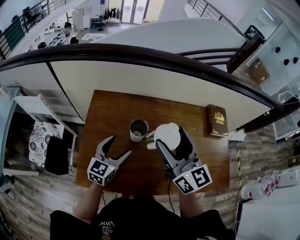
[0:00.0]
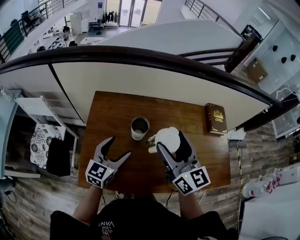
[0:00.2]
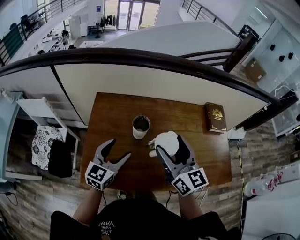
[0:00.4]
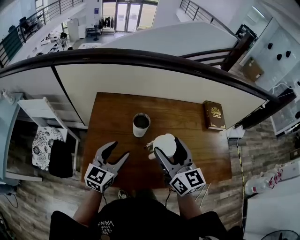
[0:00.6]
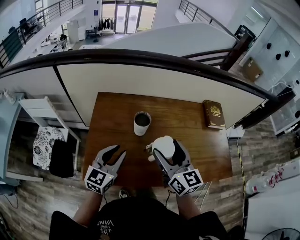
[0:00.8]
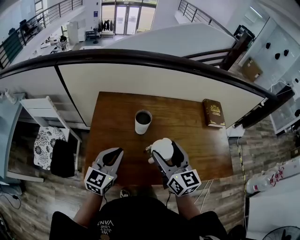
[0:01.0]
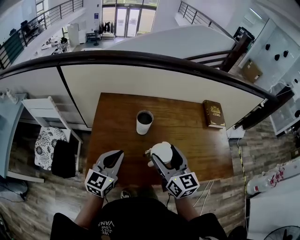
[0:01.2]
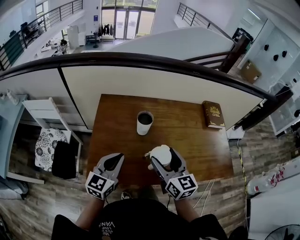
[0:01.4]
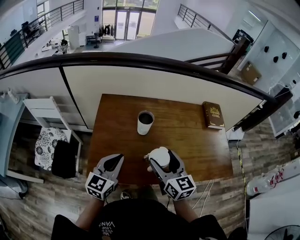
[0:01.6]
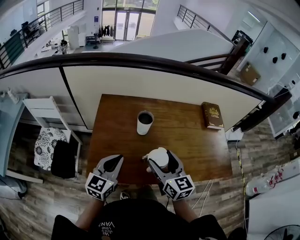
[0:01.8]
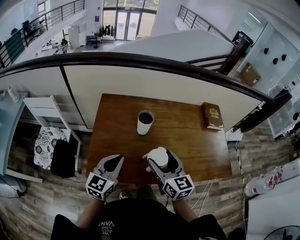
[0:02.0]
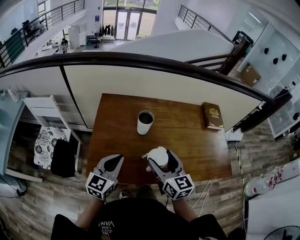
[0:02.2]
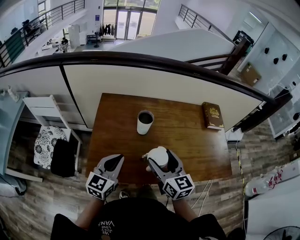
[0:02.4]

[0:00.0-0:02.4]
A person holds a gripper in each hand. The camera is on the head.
0:00.0 to 0:01.2: The right gripper travels backward and downward by roughly 15 cm. Meanwhile the left gripper heads backward and upward, covering approximately 15 cm, and closes up.
0:01.2 to 0:02.4: The grippers stay close to where they were, moving slightly.

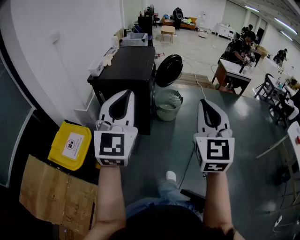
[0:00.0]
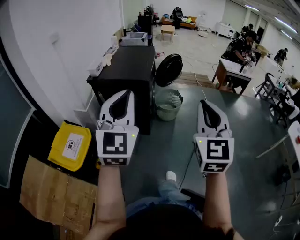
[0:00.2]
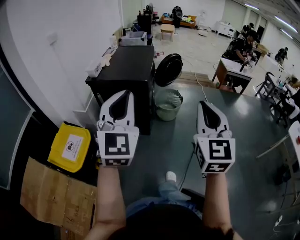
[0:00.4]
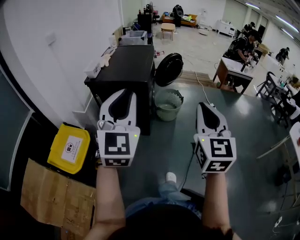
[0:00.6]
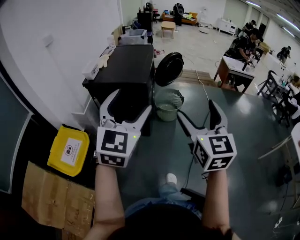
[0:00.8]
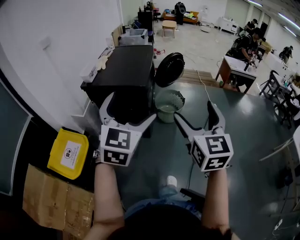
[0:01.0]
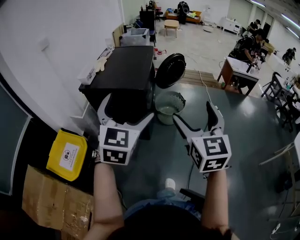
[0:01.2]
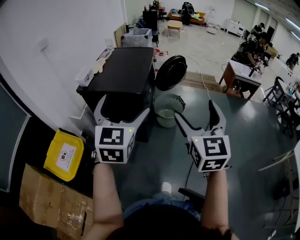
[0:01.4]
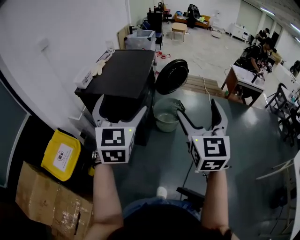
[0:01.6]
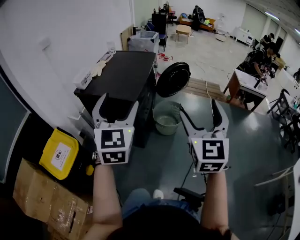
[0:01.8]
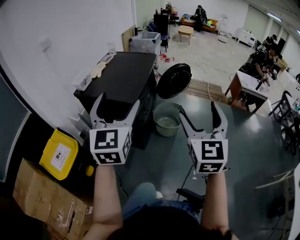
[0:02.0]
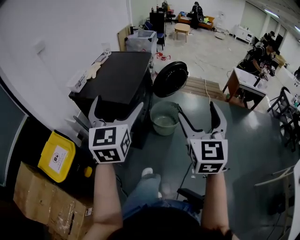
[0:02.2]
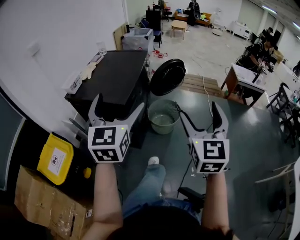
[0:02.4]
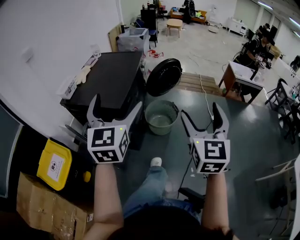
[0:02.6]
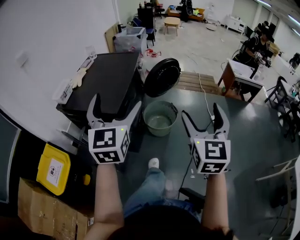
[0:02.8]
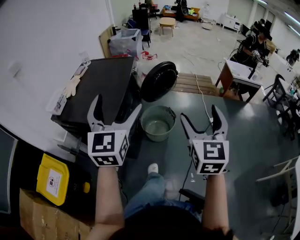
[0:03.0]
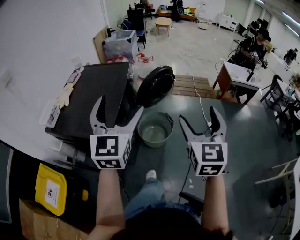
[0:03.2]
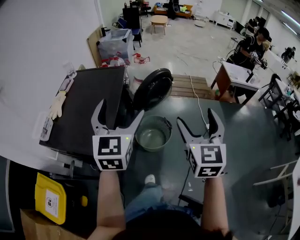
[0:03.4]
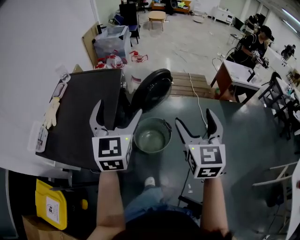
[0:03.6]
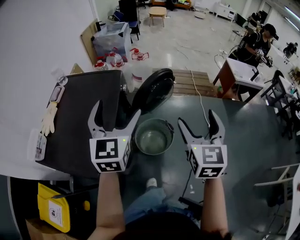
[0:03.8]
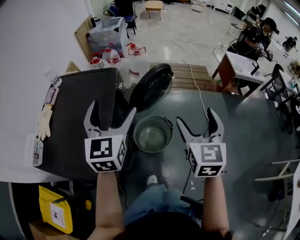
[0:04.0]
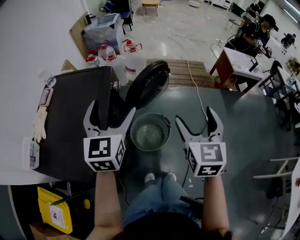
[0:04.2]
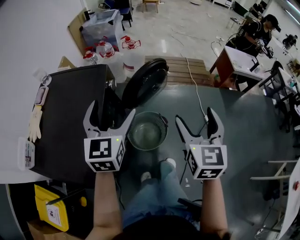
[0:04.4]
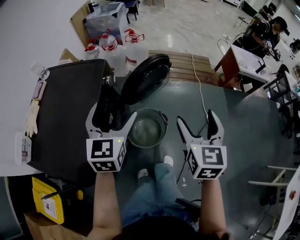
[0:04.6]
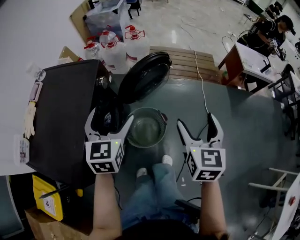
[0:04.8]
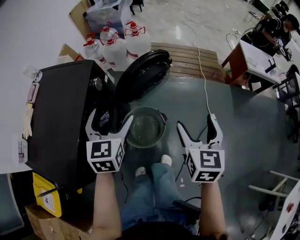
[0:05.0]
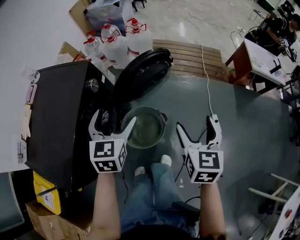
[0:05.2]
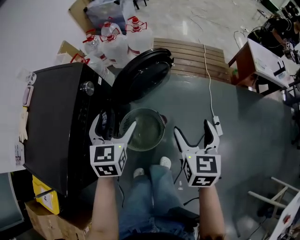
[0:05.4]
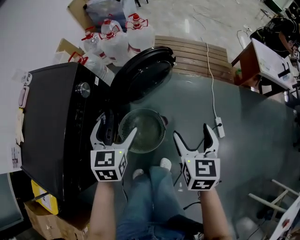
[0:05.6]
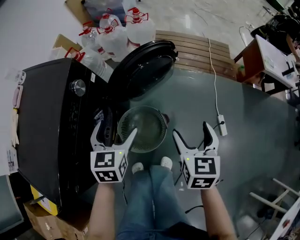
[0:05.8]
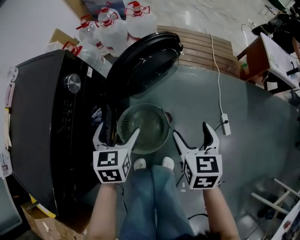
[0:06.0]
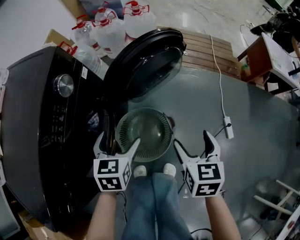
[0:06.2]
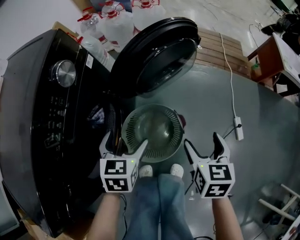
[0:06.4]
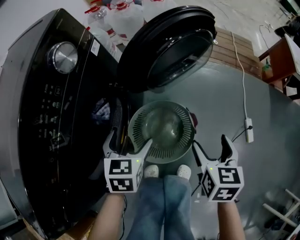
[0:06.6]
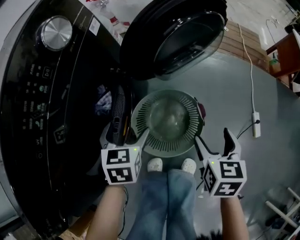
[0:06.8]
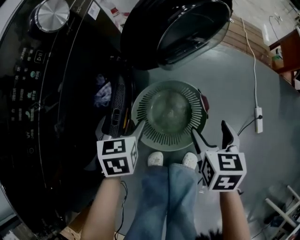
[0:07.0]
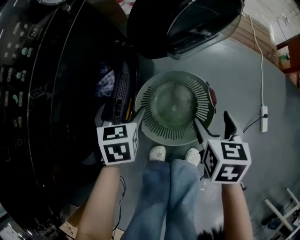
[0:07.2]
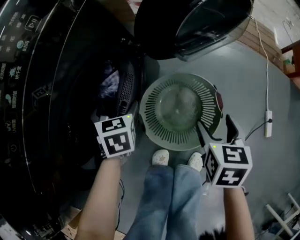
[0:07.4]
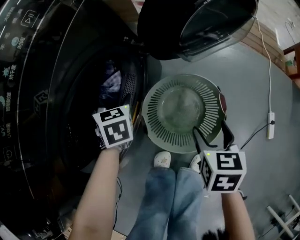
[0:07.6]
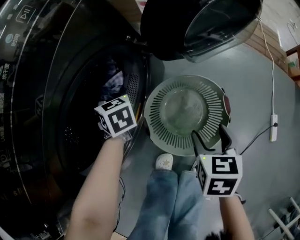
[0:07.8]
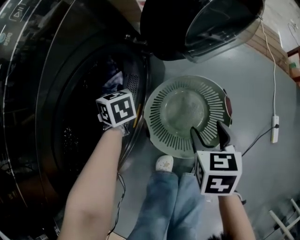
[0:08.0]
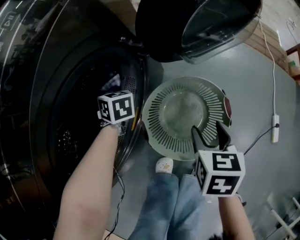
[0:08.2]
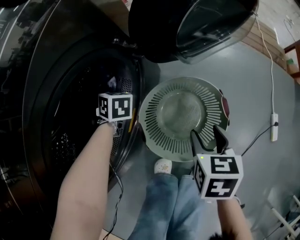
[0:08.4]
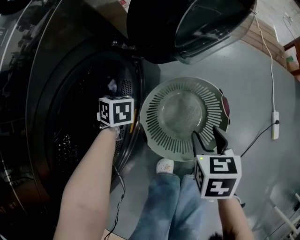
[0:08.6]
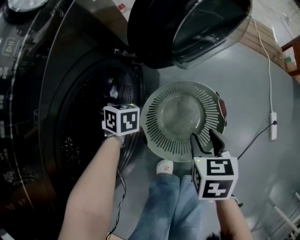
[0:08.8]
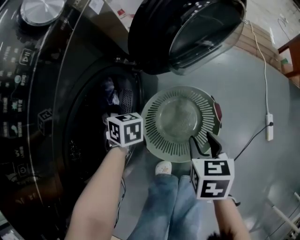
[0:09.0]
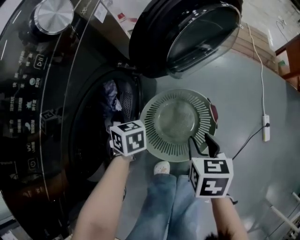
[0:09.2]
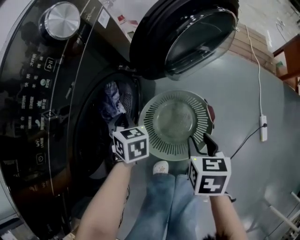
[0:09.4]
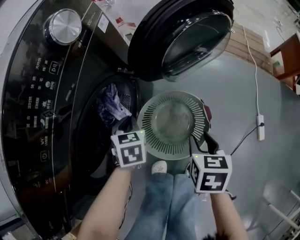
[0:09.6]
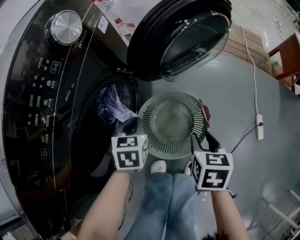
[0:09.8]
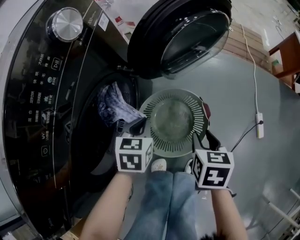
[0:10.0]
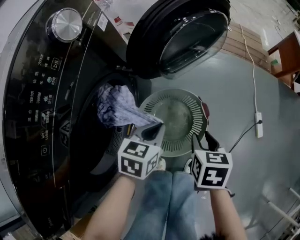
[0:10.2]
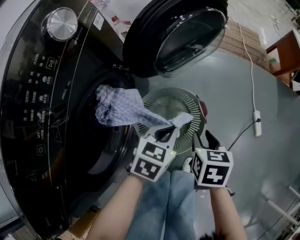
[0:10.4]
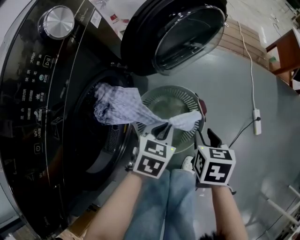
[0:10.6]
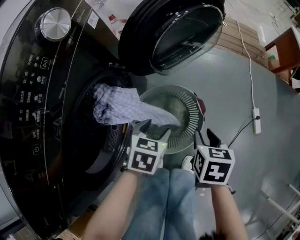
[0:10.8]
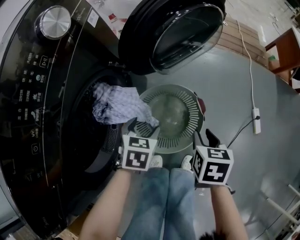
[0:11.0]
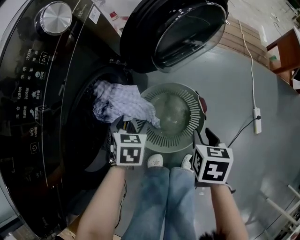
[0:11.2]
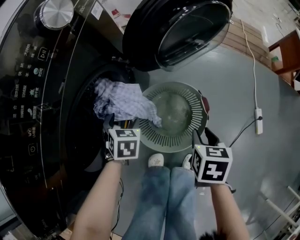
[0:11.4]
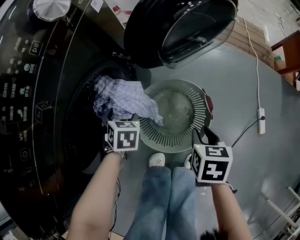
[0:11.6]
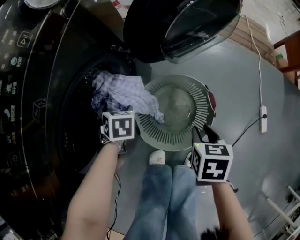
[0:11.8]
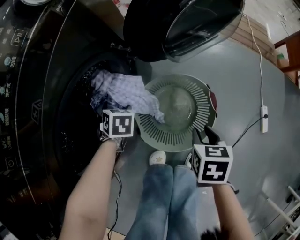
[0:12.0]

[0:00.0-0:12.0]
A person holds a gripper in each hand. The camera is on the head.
0:00.0 to 0:01.6: The grippers both shift forward by about 20 cm. The left gripper opens up. The right gripper opens its fingers.
0:01.6 to 0:03.0: Both grippers move forward and to the right, approximately 20 cm.
0:03.0 to 0:04.4: Both grippers travel together forward, some 30 cm.
0:04.4 to 0:06.0: The left gripper heads downward, covering about 30 cm, and swivels about 30 degrees. Meanwhile the right gripper moves downward and forward, roughly 30 cm, and swivels about 30 degrees.
0:06.0 to 0:07.6: The grippers both shift downward by about 25 cm. The left gripper turns by approximately 30 degrees.
0:07.6 to 0:09.0: The left gripper closes its fingers, while the right gripper closes up.
0:09.0 to 0:10.4: The right gripper moves some 5 cm. Meanwhile the left gripper changes place by some 30 cm, and rotates about 60 degrees.
0:10.4 to 0:12.0: The left gripper moves approximately 30 cm, changes its angle by some 50 degrees, and opens, while the right gripper shifts about 5 cm downward.

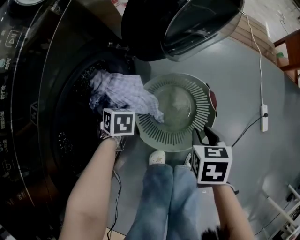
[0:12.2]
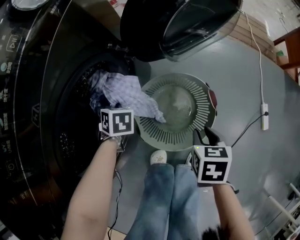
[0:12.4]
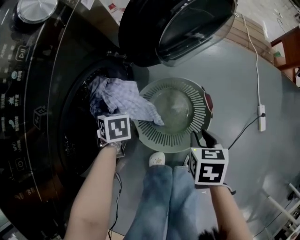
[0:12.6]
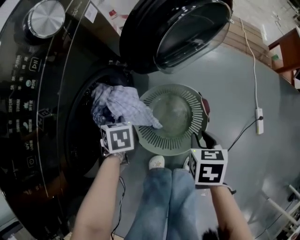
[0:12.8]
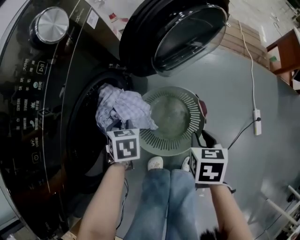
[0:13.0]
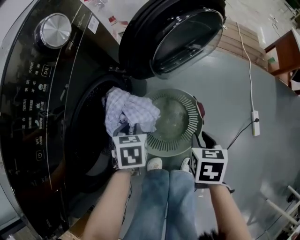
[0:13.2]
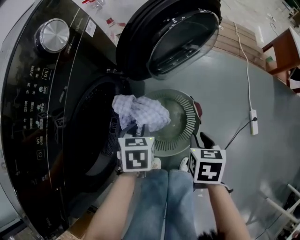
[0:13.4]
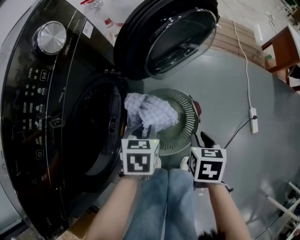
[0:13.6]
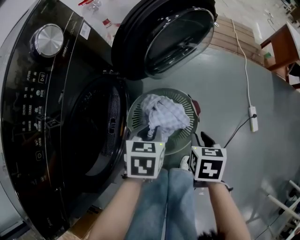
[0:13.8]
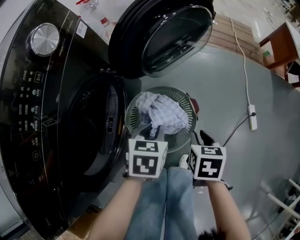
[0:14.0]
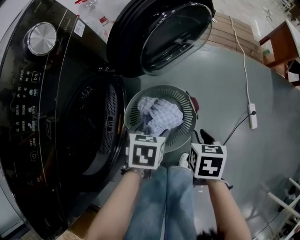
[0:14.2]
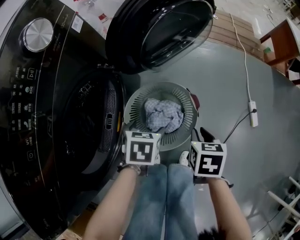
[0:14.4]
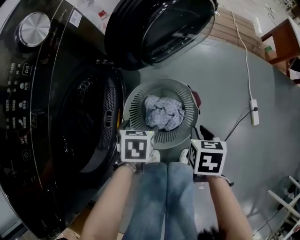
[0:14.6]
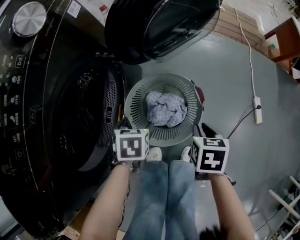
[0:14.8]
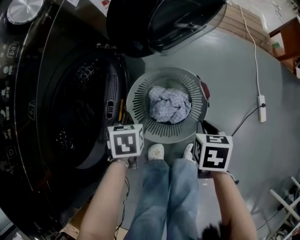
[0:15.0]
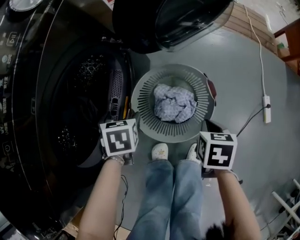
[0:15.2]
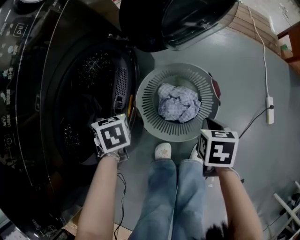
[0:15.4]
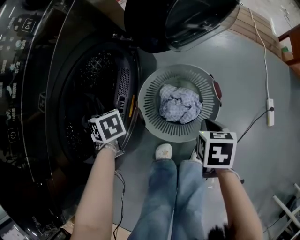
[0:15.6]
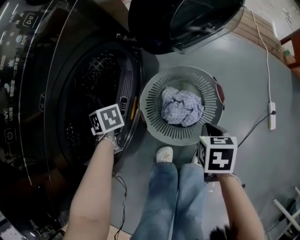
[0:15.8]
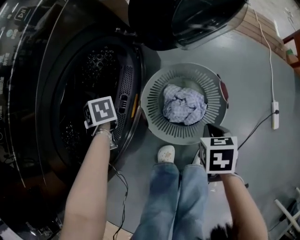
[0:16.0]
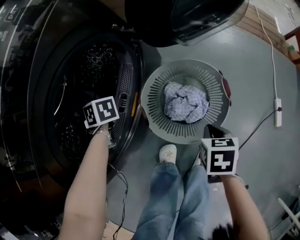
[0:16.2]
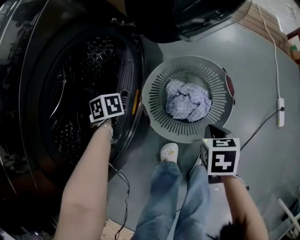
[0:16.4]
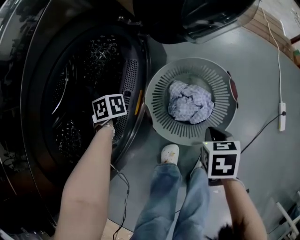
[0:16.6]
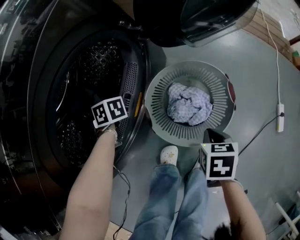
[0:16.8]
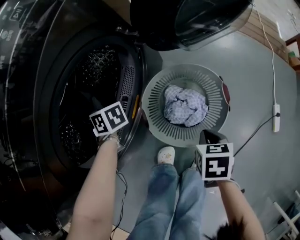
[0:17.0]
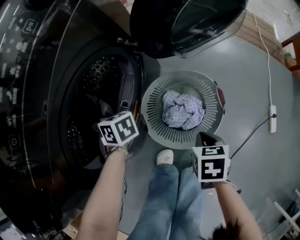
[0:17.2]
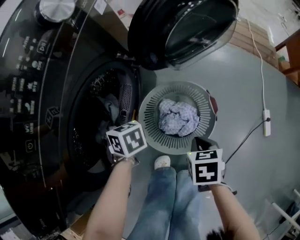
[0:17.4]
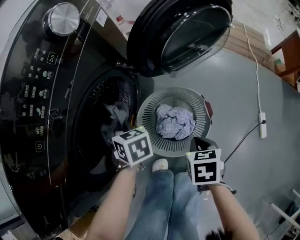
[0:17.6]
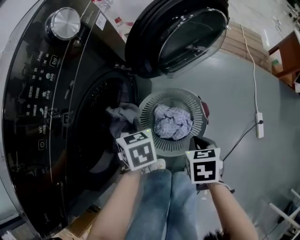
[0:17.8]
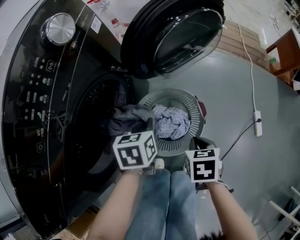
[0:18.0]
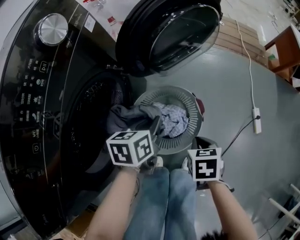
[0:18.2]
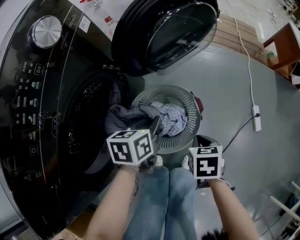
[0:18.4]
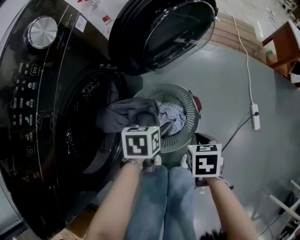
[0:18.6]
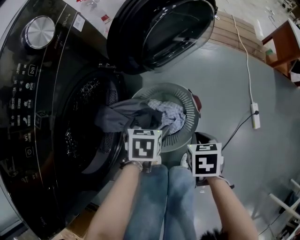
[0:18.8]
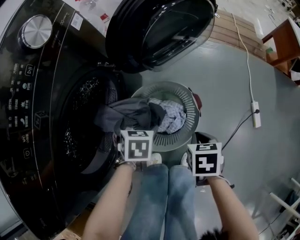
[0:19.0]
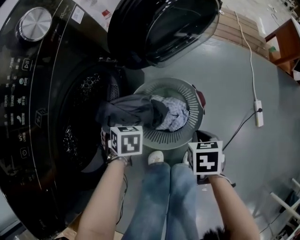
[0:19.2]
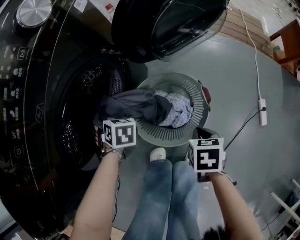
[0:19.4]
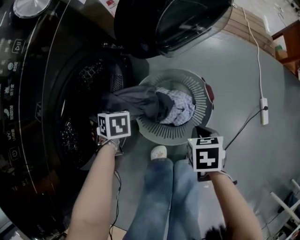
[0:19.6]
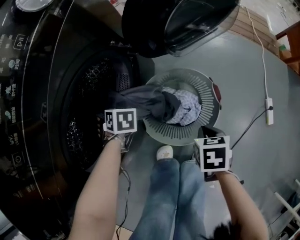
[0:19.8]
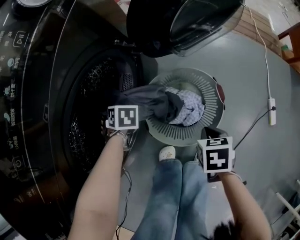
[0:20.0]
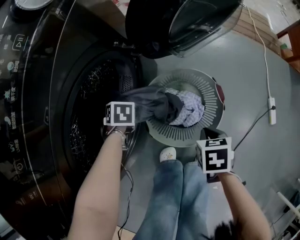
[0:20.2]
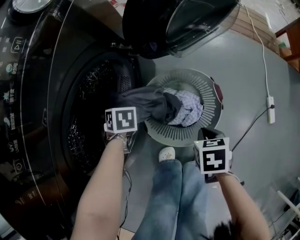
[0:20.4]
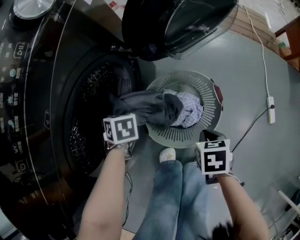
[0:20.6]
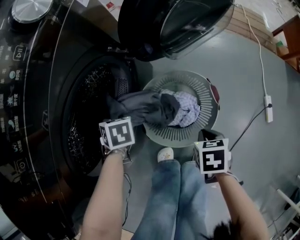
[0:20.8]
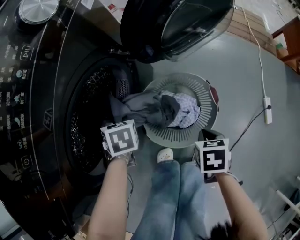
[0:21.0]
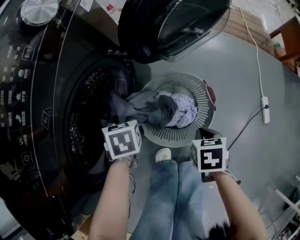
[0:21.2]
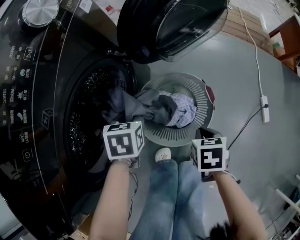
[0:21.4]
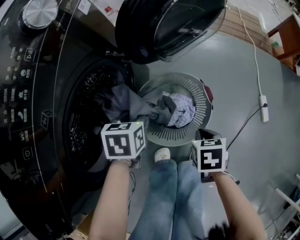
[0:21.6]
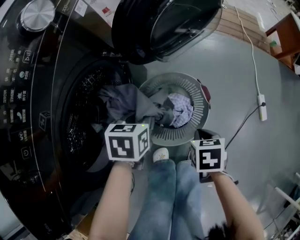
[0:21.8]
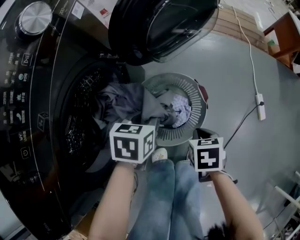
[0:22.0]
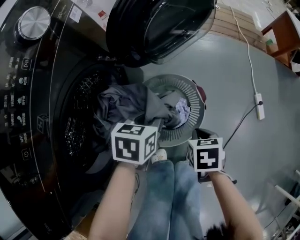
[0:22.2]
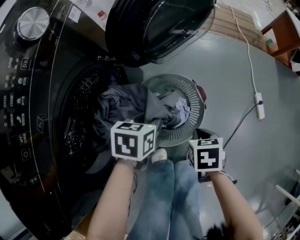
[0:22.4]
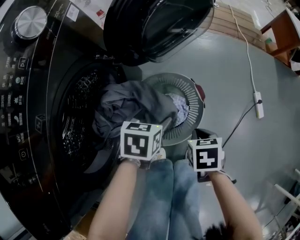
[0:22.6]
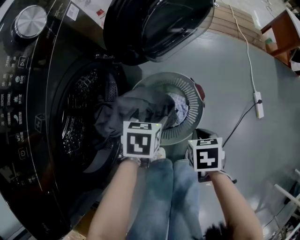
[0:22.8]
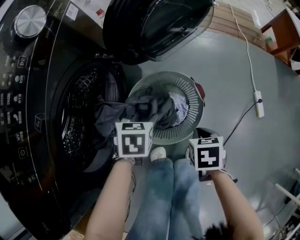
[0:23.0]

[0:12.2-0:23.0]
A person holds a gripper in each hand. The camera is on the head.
0:12.2 to 0:13.8: The right gripper shifts by about 10 cm, while the left gripper changes place by about 25 cm, rotates approximately 30 degrees, and closes its fingers.
0:13.8 to 0:15.2: The left gripper ends up approximately 20 cm from where it was, rotates about 20 degrees, and opens, while the right gripper heads downward, covering approximately 5 cm.
0:15.2 to 0:16.8: The left gripper ends up some 20 cm from where it was, turns by roughly 50 degrees, and closes. Meanwhile the right gripper ends up roughly 5 cm from where it was.
0:16.8 to 0:18.4: The left gripper shifts by approximately 40 cm, and rotates about 80 degrees. The right gripper shifts approximately 5 cm upward.
0:18.4 to 0:20.0: The left gripper shifts by approximately 25 cm, turns by roughly 50 degrees, and opens; the right gripper moves approximately 5 cm.
0:20.0 to 0:21.4: The left gripper ends up about 15 cm from where it was, turns by approximately 20 degrees, and closes its fingers.
0:21.4 to 0:23.0: The left gripper travels to the right by approximately 5 cm, and opens.
